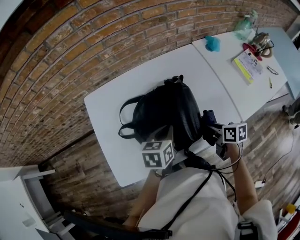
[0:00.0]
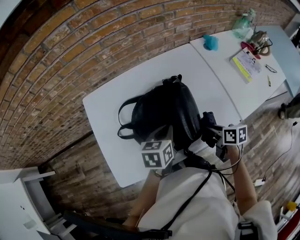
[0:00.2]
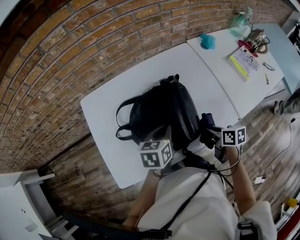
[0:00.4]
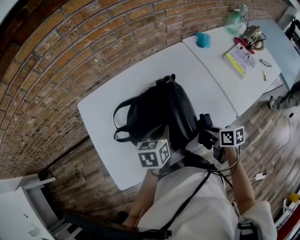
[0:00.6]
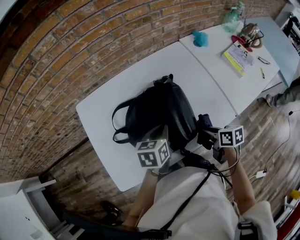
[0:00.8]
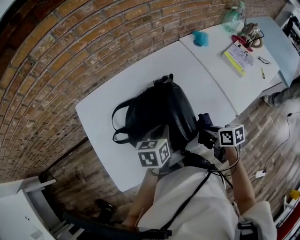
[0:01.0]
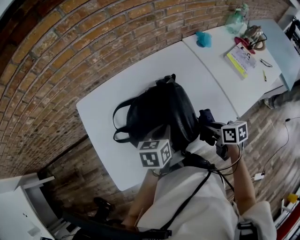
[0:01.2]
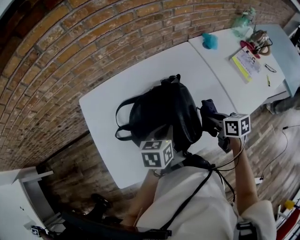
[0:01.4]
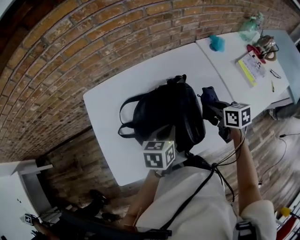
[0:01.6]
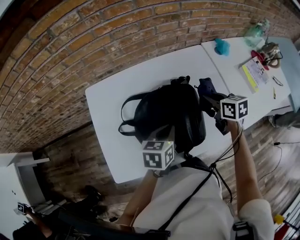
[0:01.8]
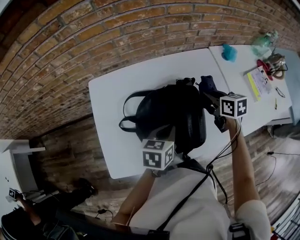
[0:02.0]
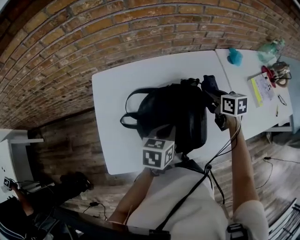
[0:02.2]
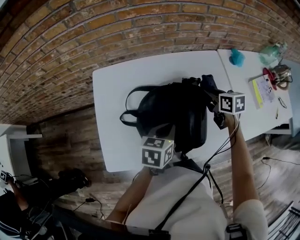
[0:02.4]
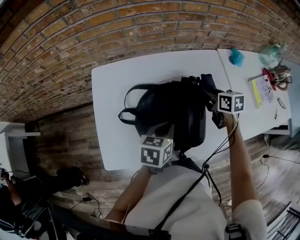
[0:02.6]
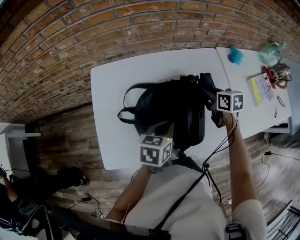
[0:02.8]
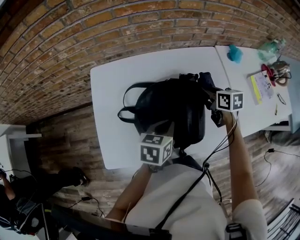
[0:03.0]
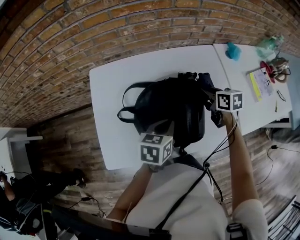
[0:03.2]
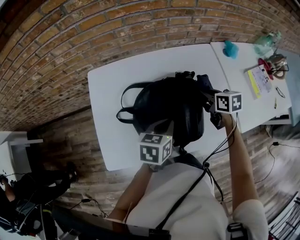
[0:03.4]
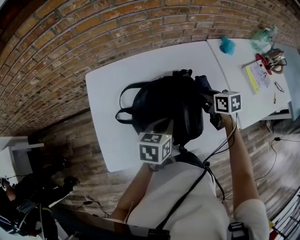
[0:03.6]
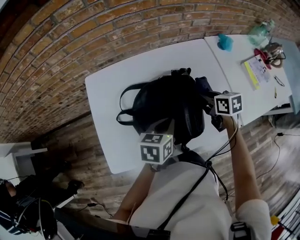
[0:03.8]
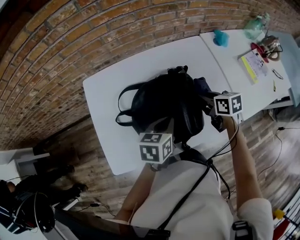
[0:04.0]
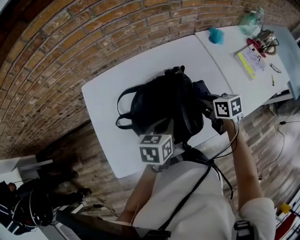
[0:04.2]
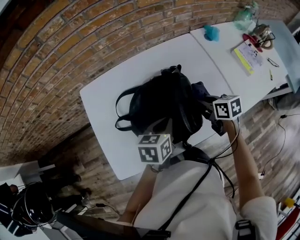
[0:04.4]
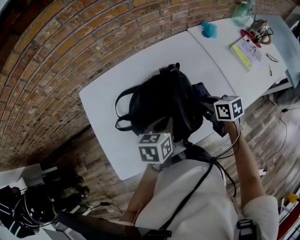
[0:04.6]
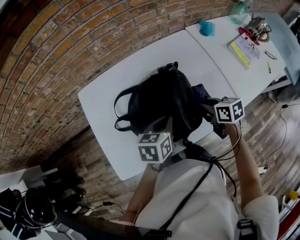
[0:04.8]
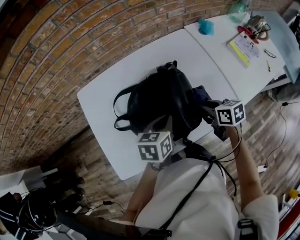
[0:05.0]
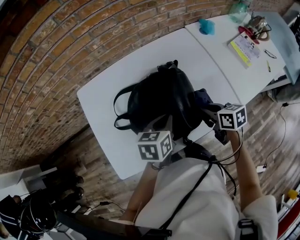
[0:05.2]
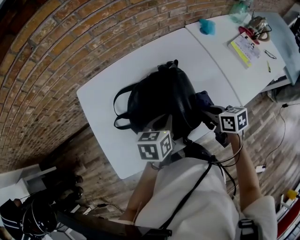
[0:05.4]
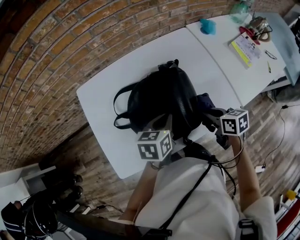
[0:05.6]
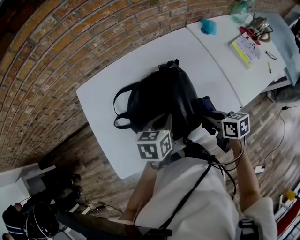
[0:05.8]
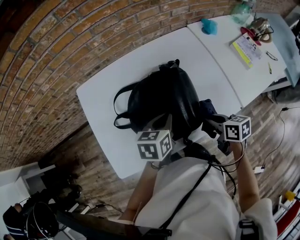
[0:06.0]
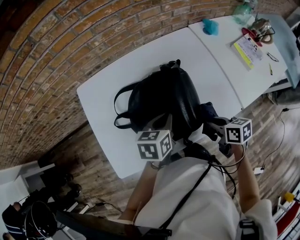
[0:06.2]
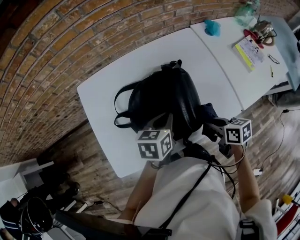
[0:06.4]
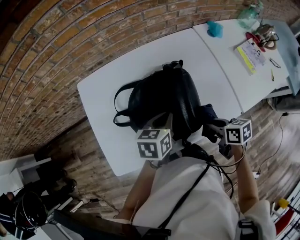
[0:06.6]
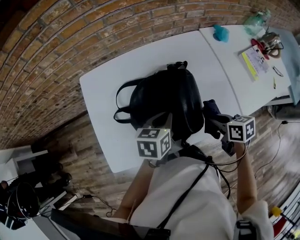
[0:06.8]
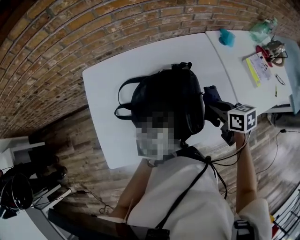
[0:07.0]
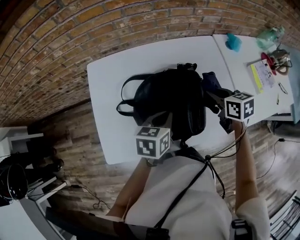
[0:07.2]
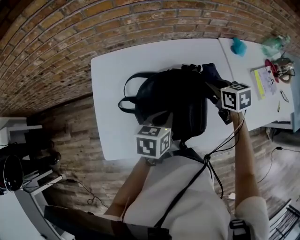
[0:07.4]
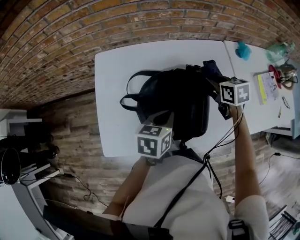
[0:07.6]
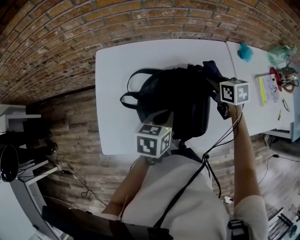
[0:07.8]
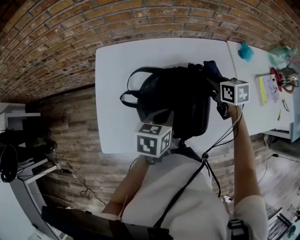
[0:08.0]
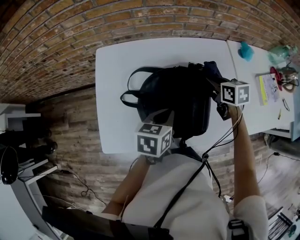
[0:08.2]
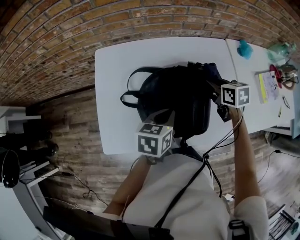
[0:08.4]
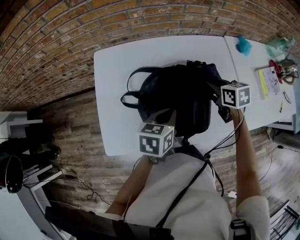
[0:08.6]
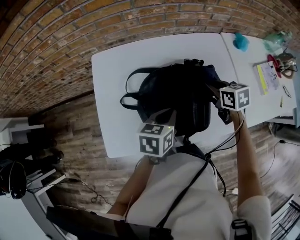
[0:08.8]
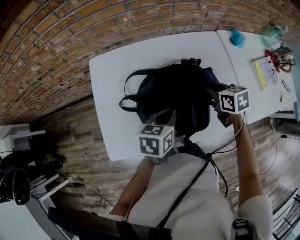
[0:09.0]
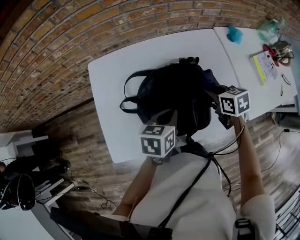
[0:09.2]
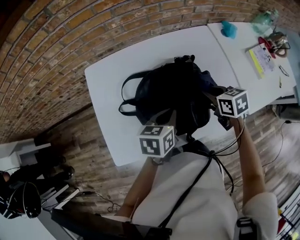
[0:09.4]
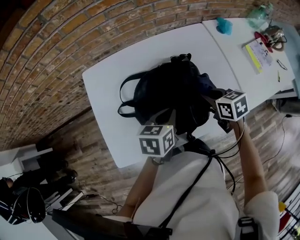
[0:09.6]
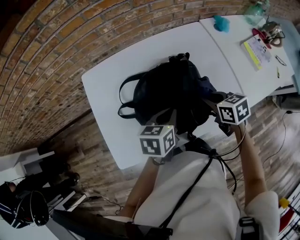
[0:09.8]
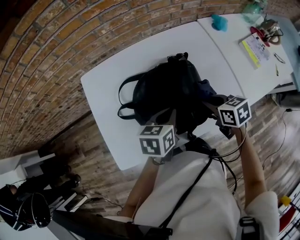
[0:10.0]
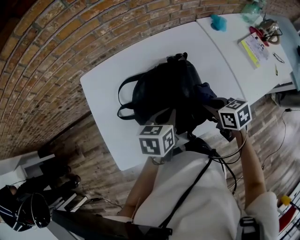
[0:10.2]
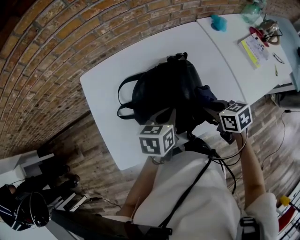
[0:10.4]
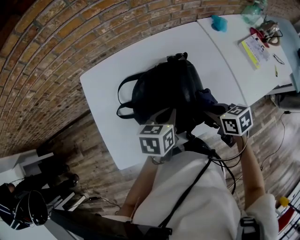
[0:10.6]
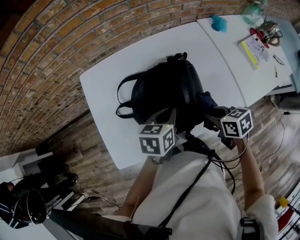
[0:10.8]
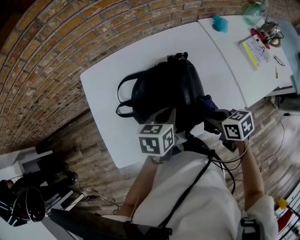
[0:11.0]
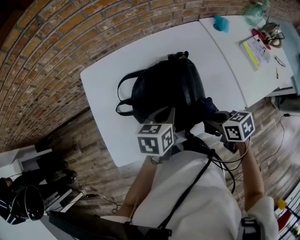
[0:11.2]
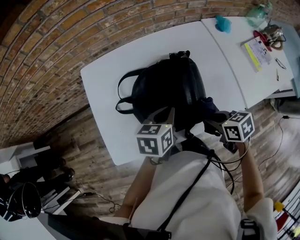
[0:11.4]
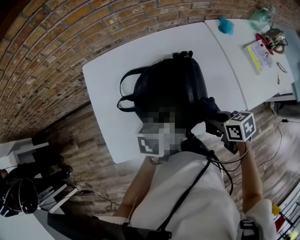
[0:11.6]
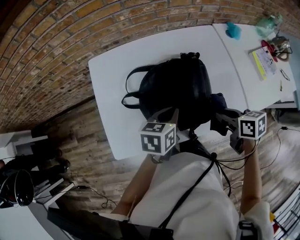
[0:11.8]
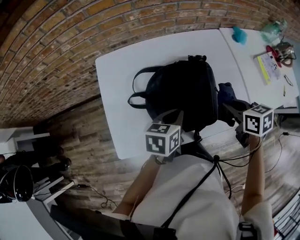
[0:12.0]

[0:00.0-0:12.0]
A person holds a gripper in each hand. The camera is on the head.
0:00.0 to 0:01.6: The right gripper moves forward and upward, about 10 cm.
0:01.6 to 0:03.0: The right gripper moves forward, some 10 cm.
0:03.0 to 0:04.4: The right gripper goes some 10 cm backward.
0:04.4 to 0:06.0: The right gripper heads backward, covering about 10 cm.
0:06.0 to 0:07.6: The right gripper shifts approximately 20 cm forward, and swivels roughly 30 degrees.
0:07.6 to 0:09.0: The right gripper heads backward, covering roughly 5 cm.
0:09.0 to 0:10.4: The right gripper goes some 10 cm backward.
0:10.4 to 0:12.0: The right gripper is displaced upward by about 5 cm.

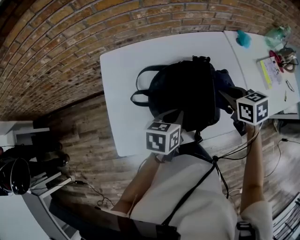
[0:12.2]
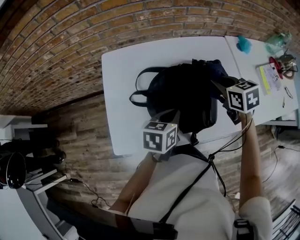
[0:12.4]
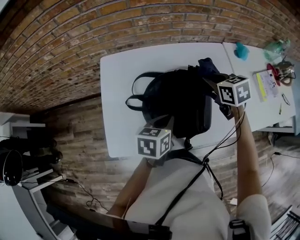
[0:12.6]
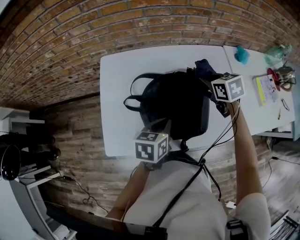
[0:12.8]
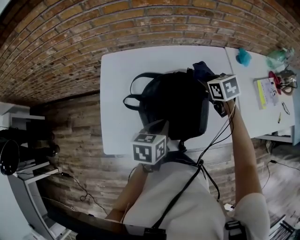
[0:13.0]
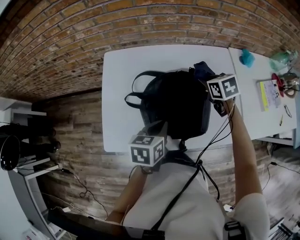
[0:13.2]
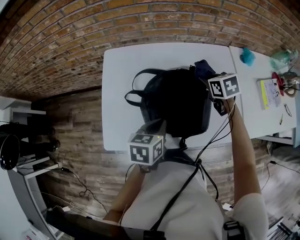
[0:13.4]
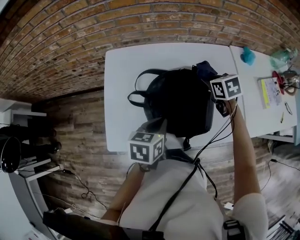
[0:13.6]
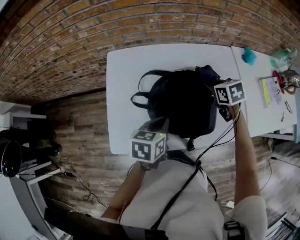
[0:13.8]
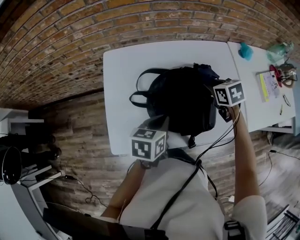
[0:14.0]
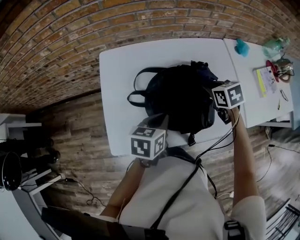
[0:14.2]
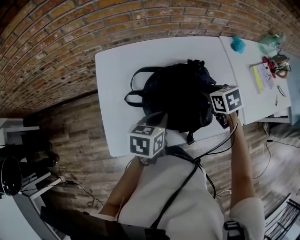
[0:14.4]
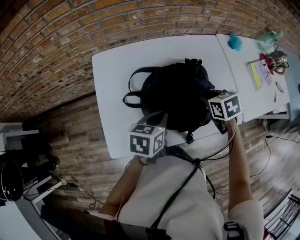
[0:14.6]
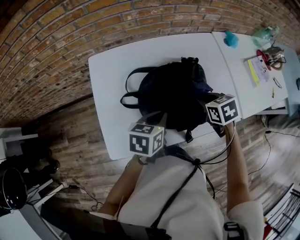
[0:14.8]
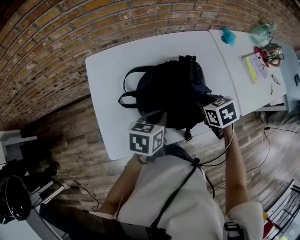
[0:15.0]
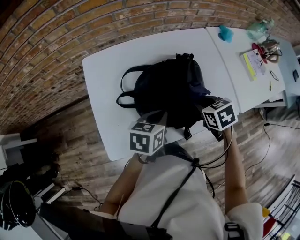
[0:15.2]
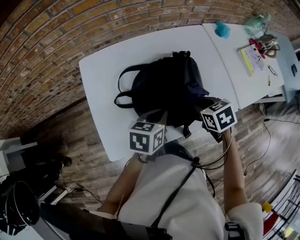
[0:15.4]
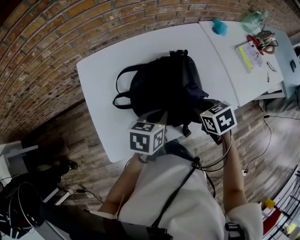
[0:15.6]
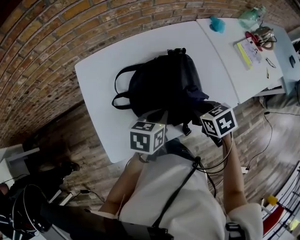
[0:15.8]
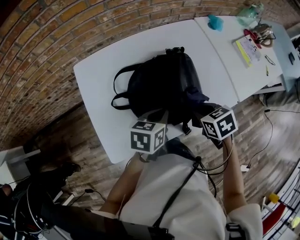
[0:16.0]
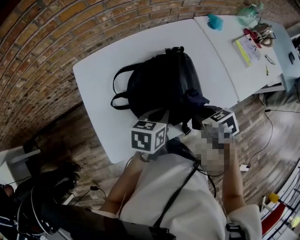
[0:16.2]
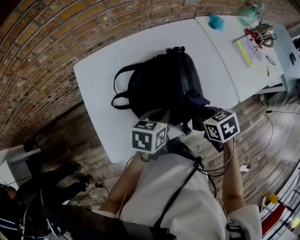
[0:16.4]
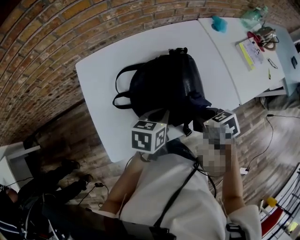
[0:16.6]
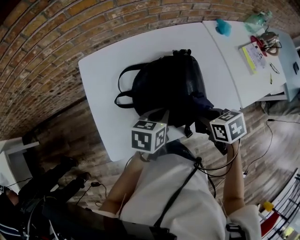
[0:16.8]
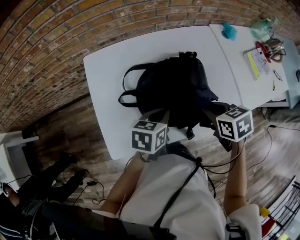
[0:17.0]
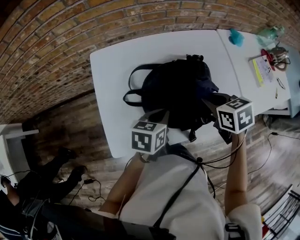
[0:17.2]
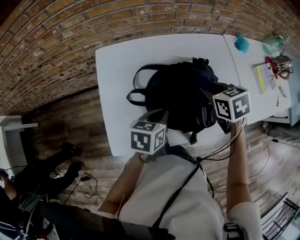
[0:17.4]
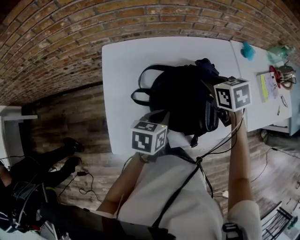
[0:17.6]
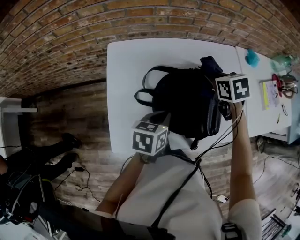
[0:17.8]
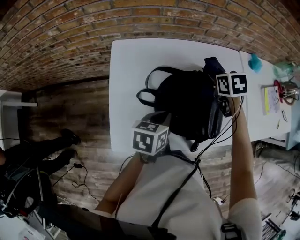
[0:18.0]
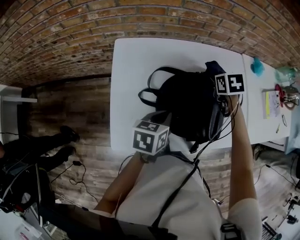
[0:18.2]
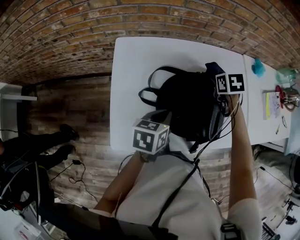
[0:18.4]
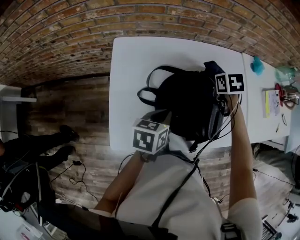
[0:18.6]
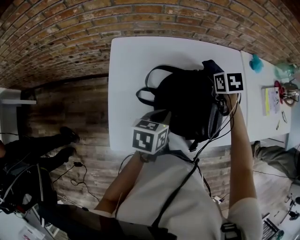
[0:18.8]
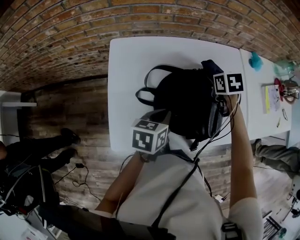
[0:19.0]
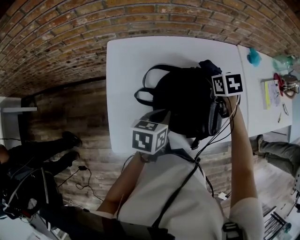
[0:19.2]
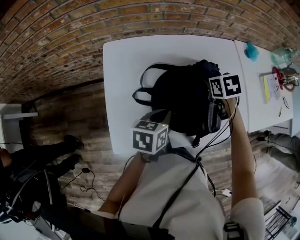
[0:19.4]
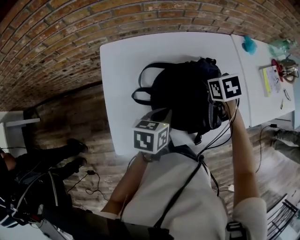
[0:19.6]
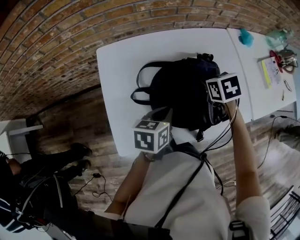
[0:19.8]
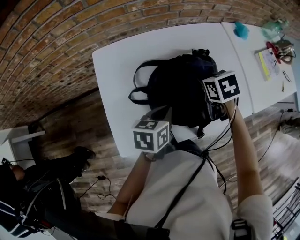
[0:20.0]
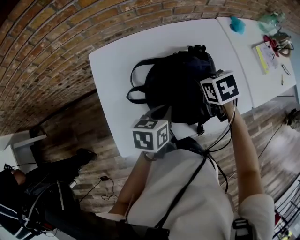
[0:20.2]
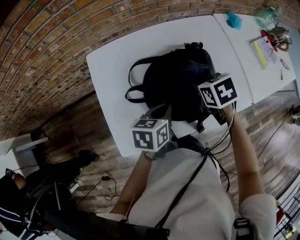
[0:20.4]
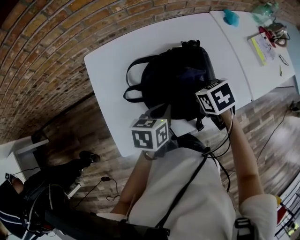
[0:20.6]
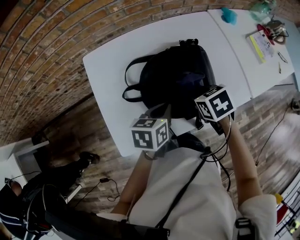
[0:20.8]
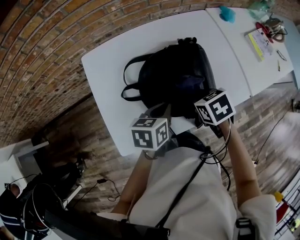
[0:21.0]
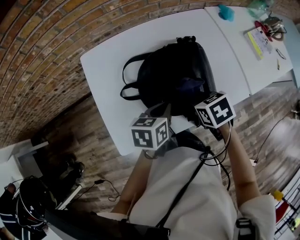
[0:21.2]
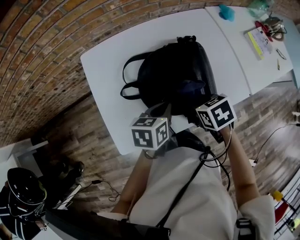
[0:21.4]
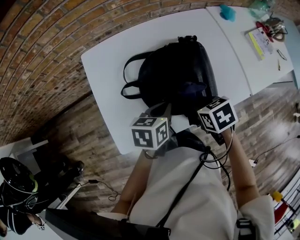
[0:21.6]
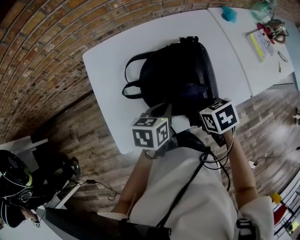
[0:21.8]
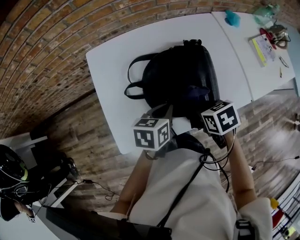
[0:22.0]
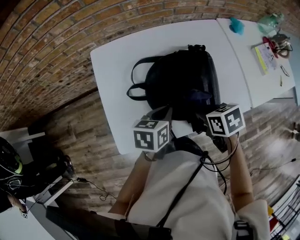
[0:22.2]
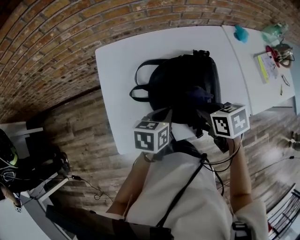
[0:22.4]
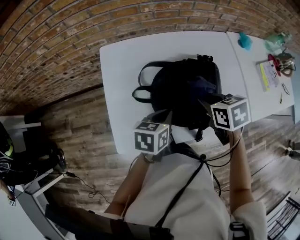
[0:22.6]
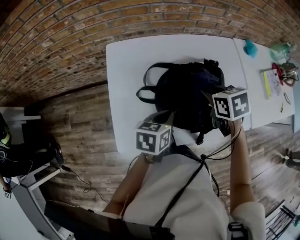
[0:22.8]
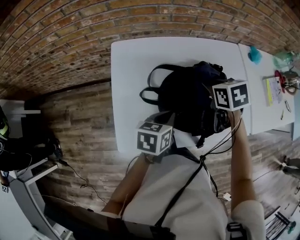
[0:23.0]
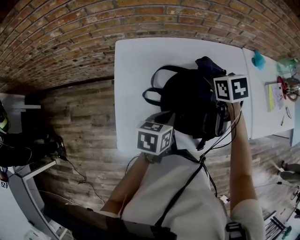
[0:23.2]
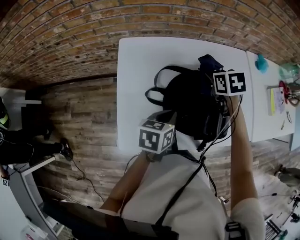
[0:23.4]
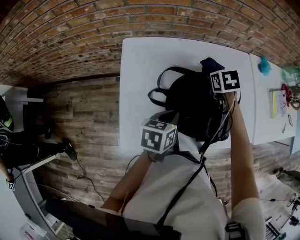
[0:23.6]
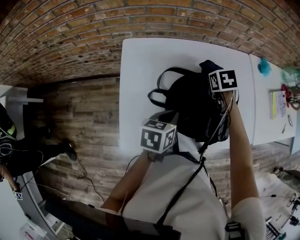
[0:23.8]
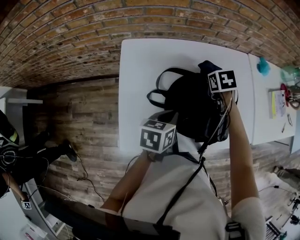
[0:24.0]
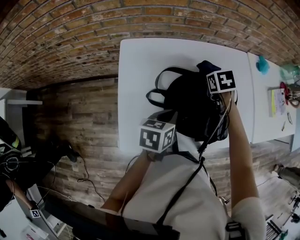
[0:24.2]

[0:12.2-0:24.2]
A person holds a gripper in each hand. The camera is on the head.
0:12.2 to 0:13.8: The right gripper goes roughly 10 cm forward and downward.
0:13.8 to 0:15.2: The right gripper travels backward by about 15 cm.
0:15.2 to 0:16.6: The right gripper moves backward, approximately 5 cm.
0:16.6 to 0:18.2: The left gripper heads to the left, covering about 10 cm. The right gripper heads forward, covering approximately 25 cm.
0:18.2 to 0:19.8: The right gripper shifts approximately 10 cm backward.
0:19.8 to 0:21.2: The right gripper is displaced backward by roughly 15 cm.
0:21.2 to 0:22.6: The right gripper is displaced upward and forward by roughly 10 cm.
0:22.6 to 0:24.2: The right gripper shifts approximately 15 cm forward and downward.
